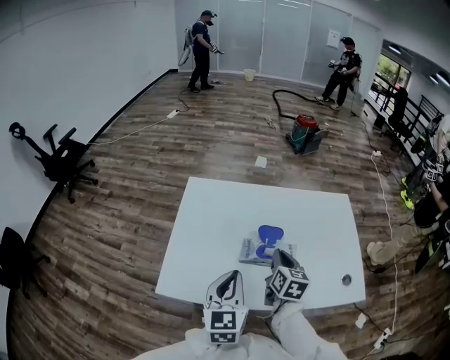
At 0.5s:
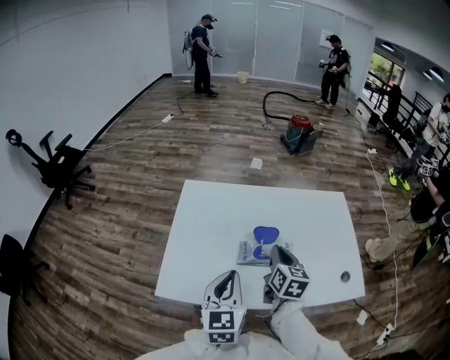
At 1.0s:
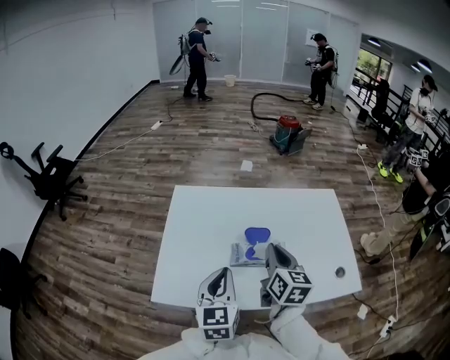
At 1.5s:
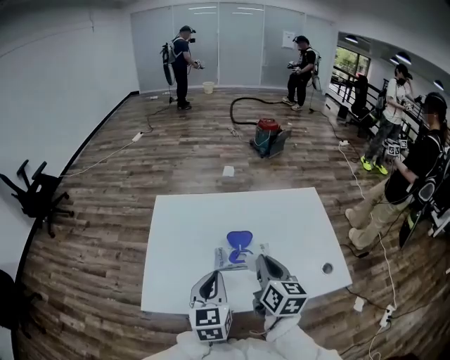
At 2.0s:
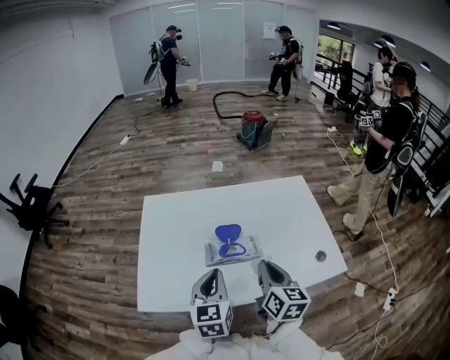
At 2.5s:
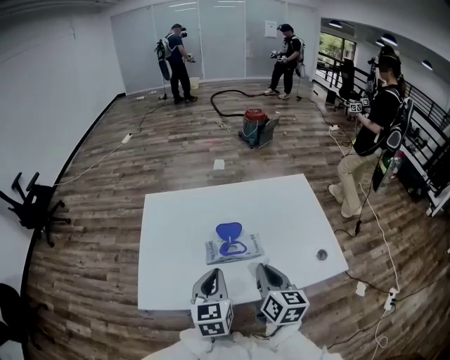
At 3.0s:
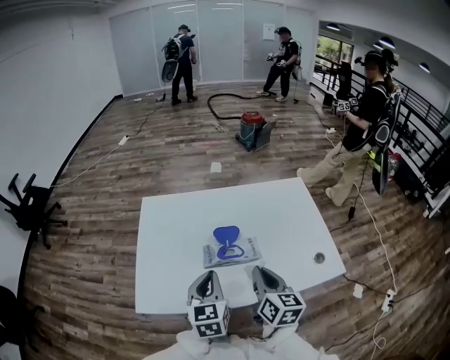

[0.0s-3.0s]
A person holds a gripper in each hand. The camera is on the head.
0.0s to 1.5s: The right gripper heads upward and backward, covering about 10 cm.
1.5s to 3.0s: The right gripper moves approximately 5 cm.

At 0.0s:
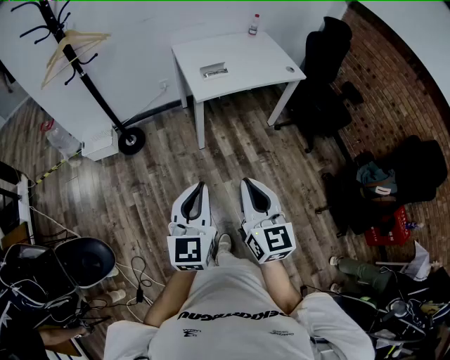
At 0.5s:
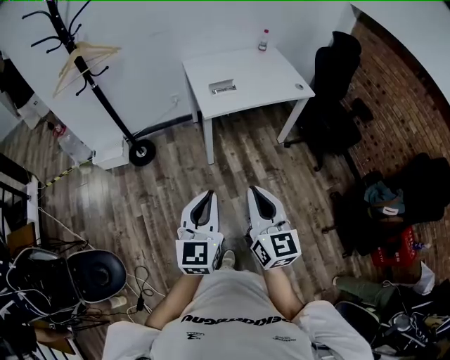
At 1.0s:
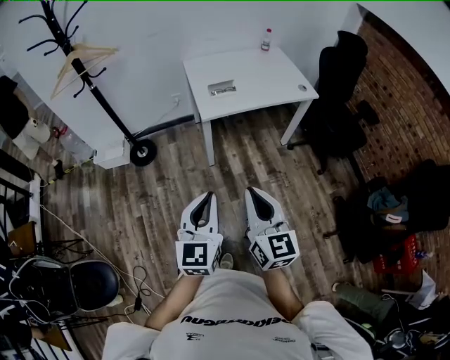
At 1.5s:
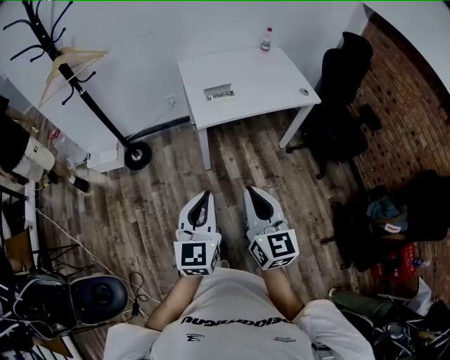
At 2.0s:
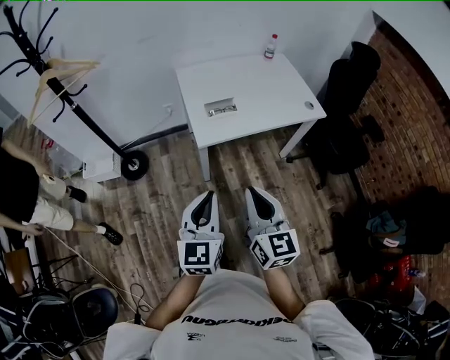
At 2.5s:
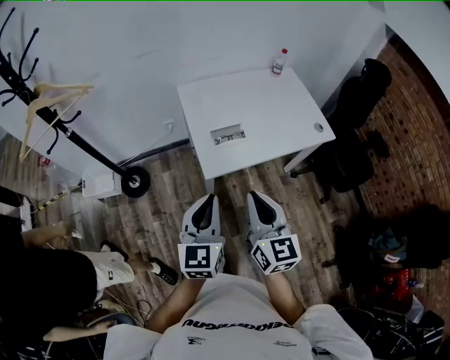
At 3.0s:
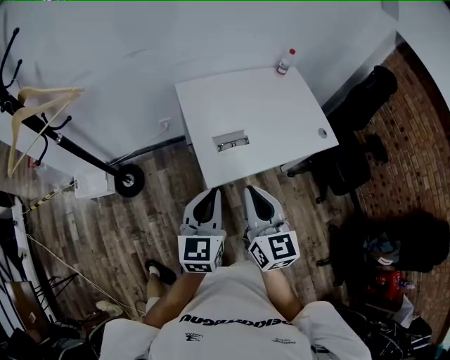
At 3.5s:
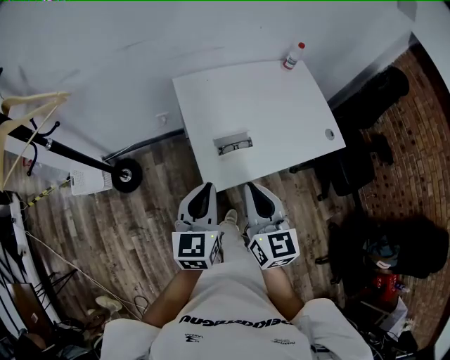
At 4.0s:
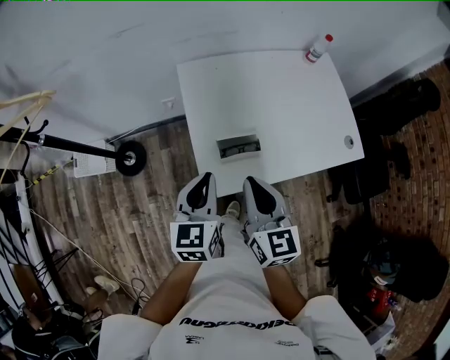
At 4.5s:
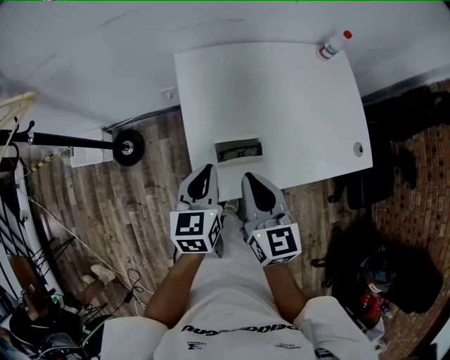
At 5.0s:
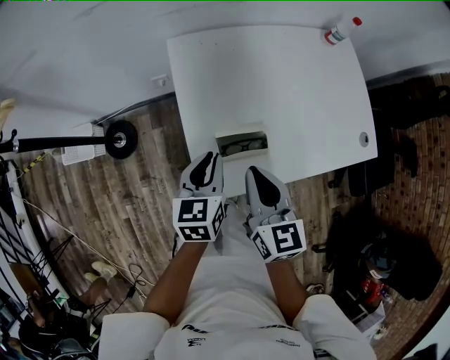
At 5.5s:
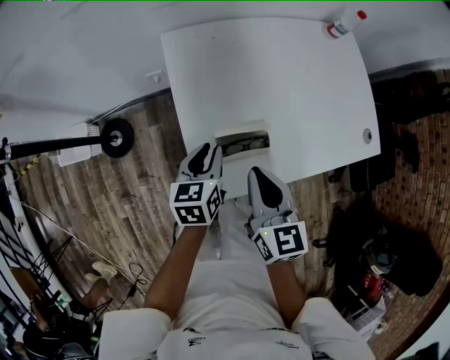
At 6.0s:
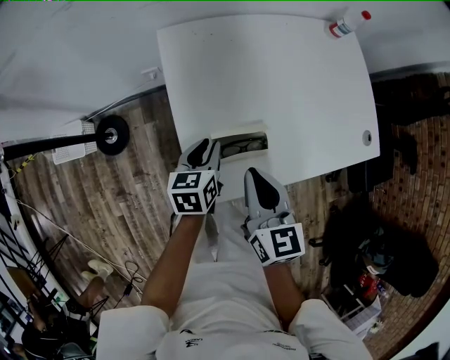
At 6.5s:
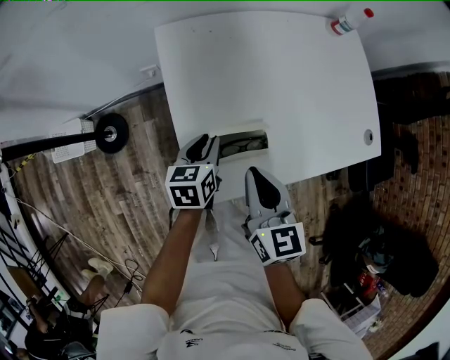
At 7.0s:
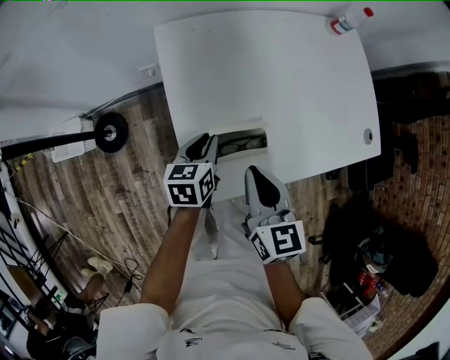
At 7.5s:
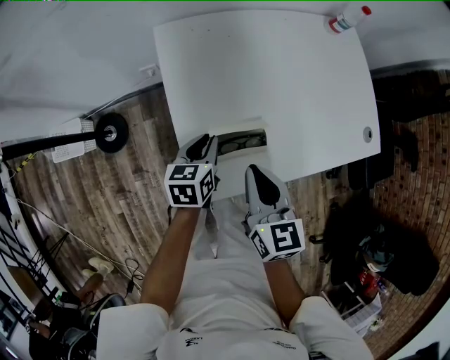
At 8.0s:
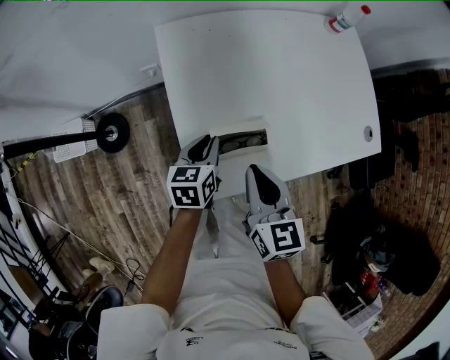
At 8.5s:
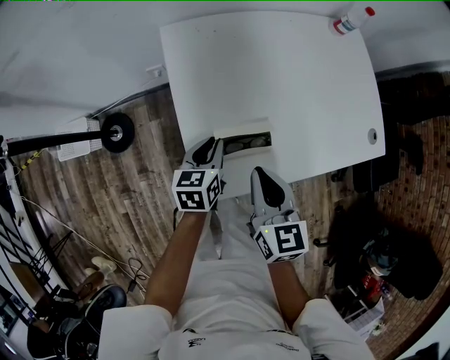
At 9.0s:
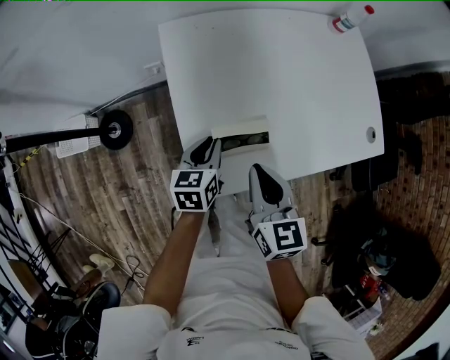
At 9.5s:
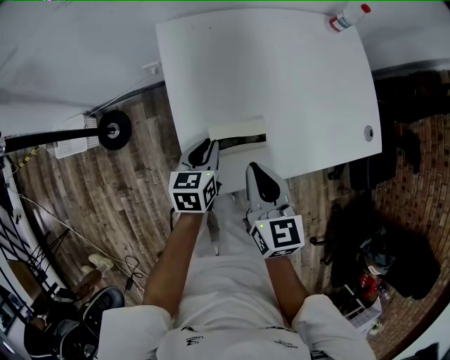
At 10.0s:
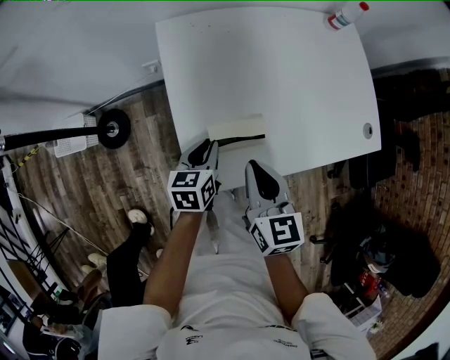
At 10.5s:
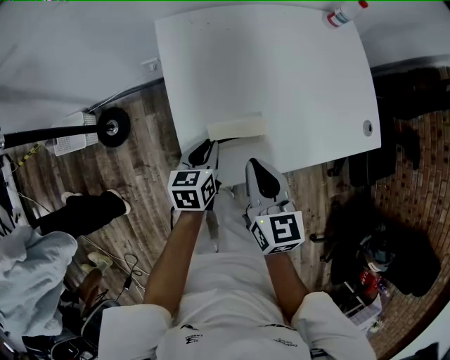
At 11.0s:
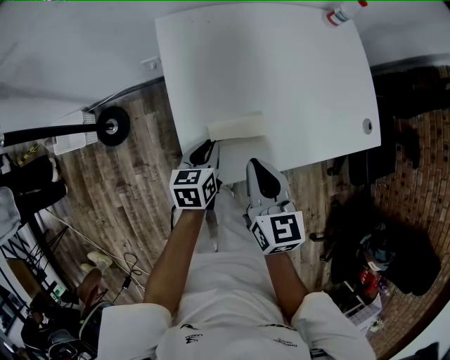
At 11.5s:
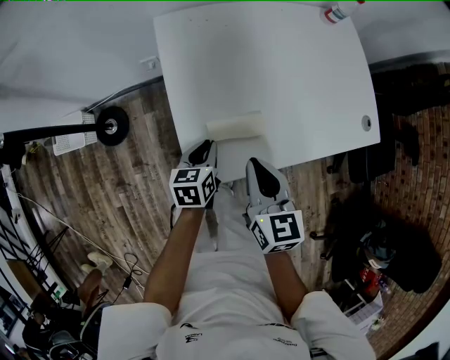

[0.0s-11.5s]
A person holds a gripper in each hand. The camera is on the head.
0.0s to 2.0s: Both grippers travel together forward, roughly 30 cm.
2.0s to 4.0s: The two grippers travel together, forward, approximately 50 cm.
4.0s to 6.0s: The left gripper travels downward and forward by some 25 cm, changes its angle by about 20 degrees, and opens up; the right gripper is displaced downward and forward by roughly 15 cm.
6.0s to 9.5s: There are only small adjustments of the grippers.
9.5s to 11.5s: The grippers make only small movements.

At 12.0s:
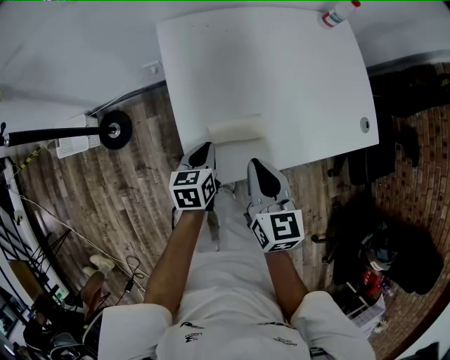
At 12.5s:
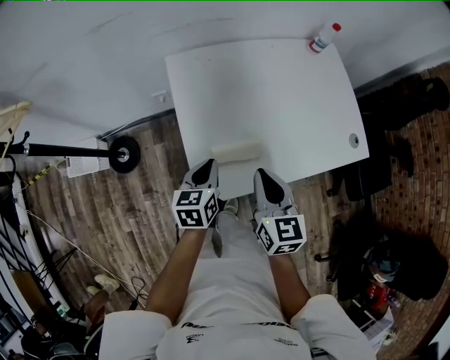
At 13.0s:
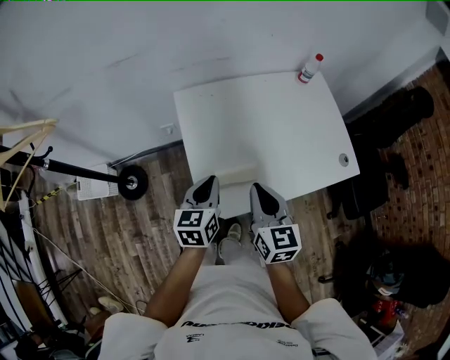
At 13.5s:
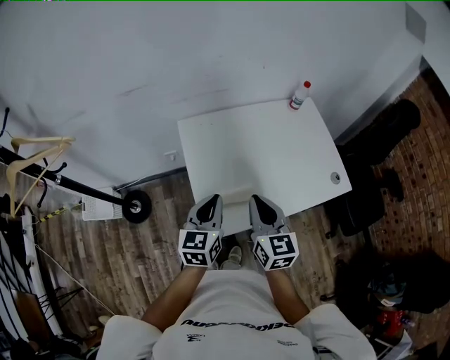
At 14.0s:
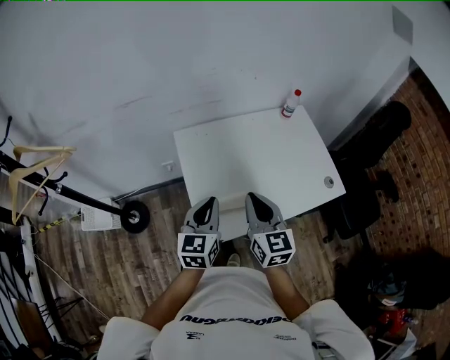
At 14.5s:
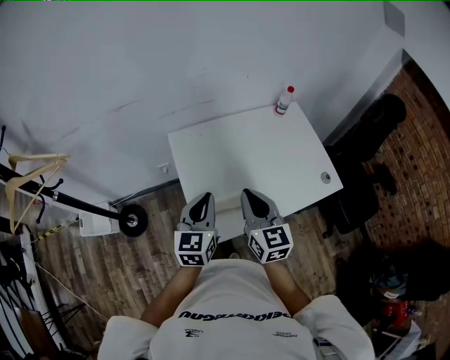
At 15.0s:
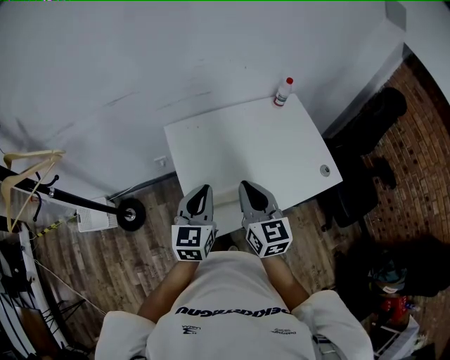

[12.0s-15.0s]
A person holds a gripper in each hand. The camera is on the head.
12.0s to 13.5s: The left gripper is displaced upward by roughly 30 cm, and rotates about 30 degrees. The right gripper shifts some 20 cm upward.
13.5s to 15.0s: The grippers move only a little.

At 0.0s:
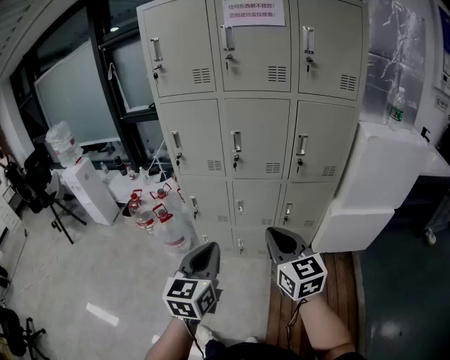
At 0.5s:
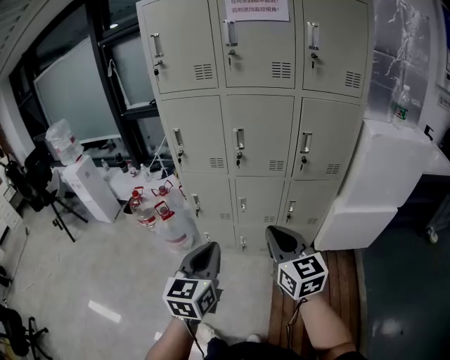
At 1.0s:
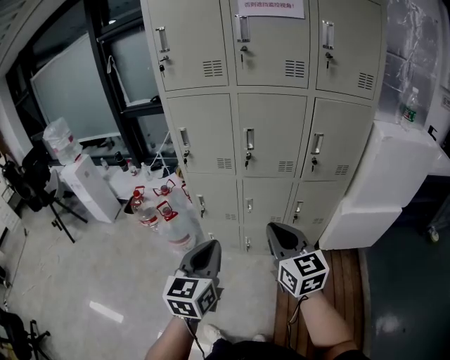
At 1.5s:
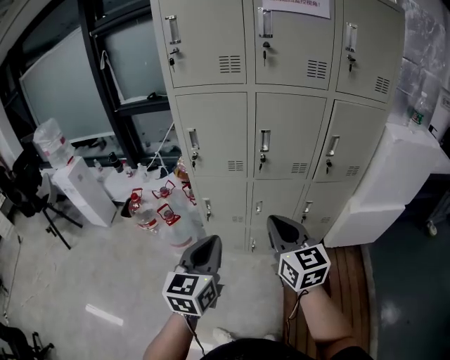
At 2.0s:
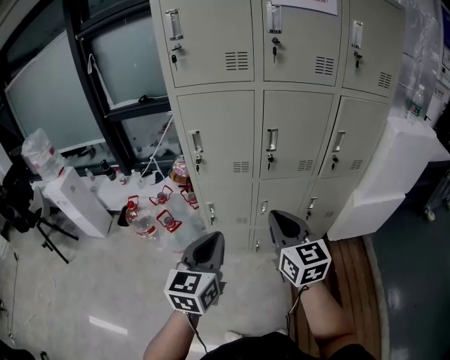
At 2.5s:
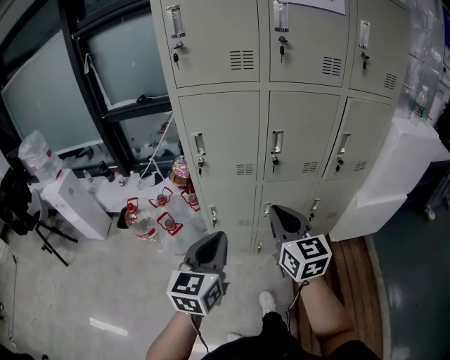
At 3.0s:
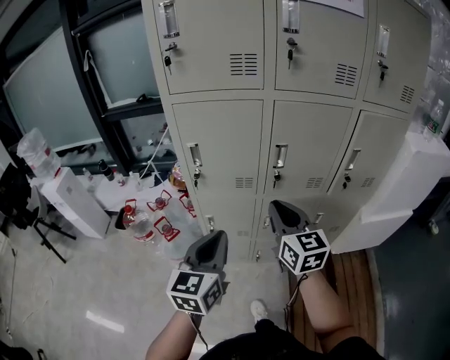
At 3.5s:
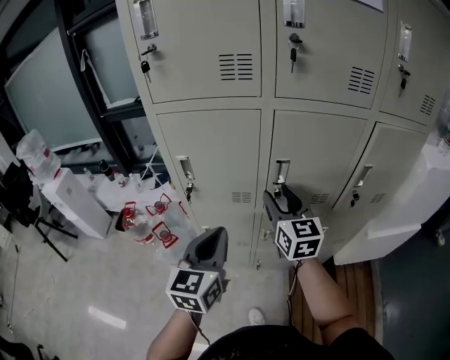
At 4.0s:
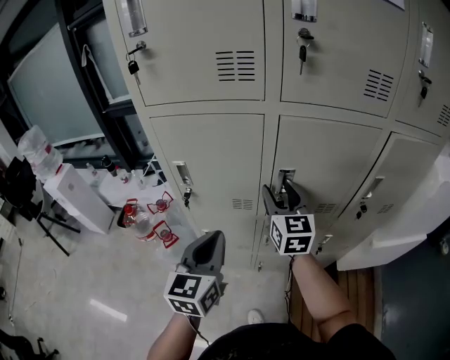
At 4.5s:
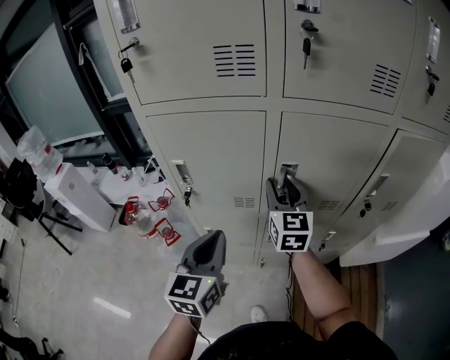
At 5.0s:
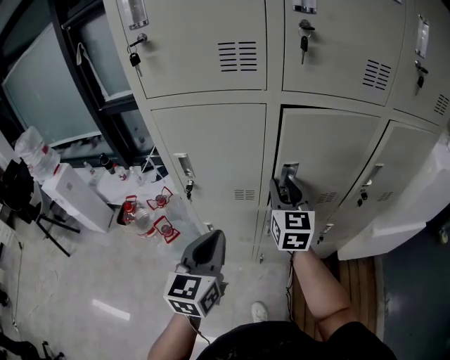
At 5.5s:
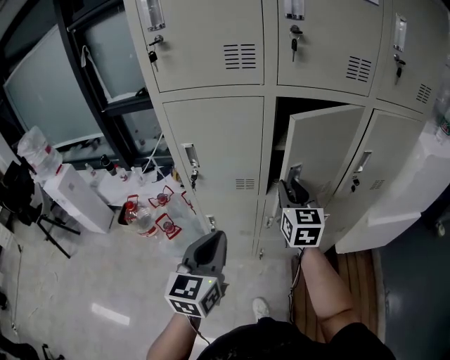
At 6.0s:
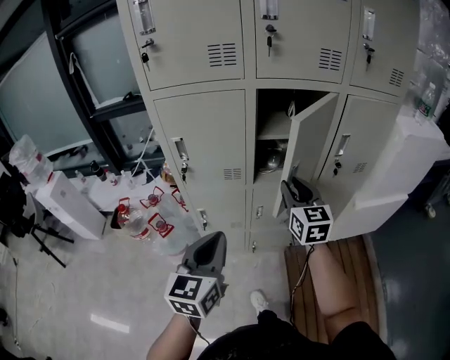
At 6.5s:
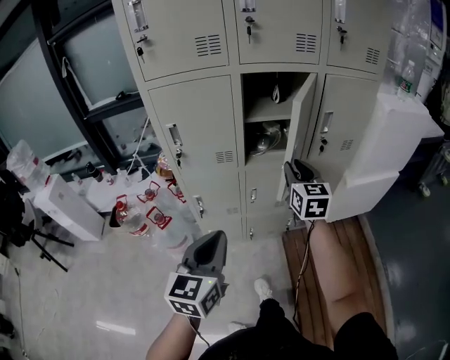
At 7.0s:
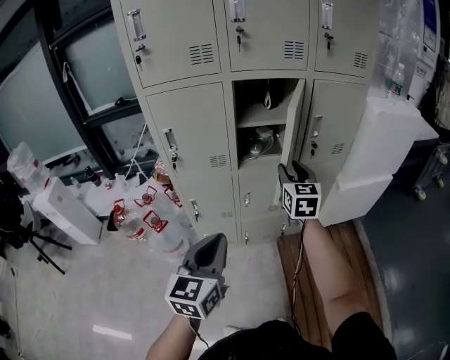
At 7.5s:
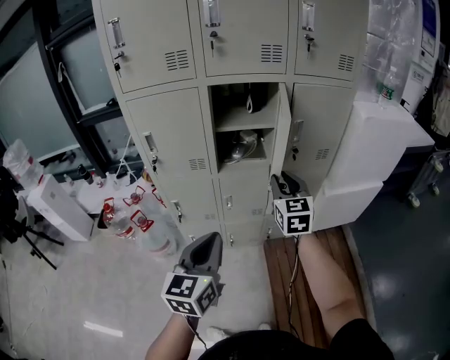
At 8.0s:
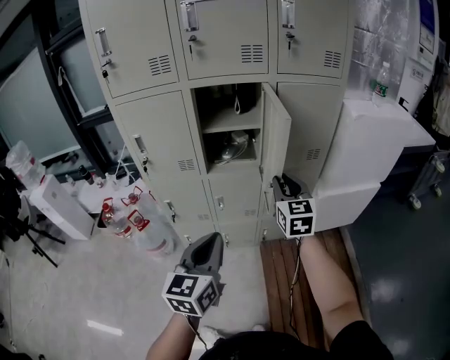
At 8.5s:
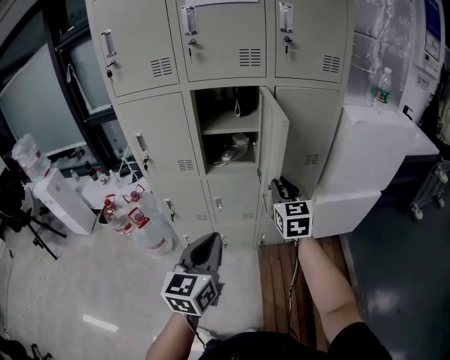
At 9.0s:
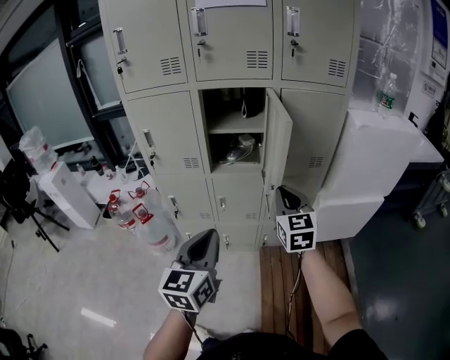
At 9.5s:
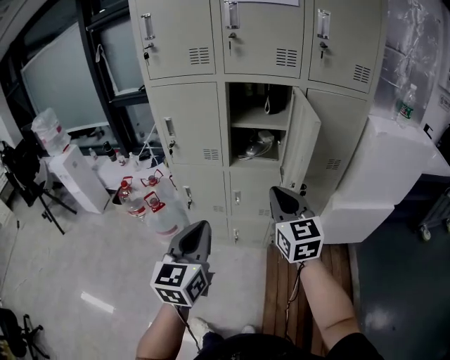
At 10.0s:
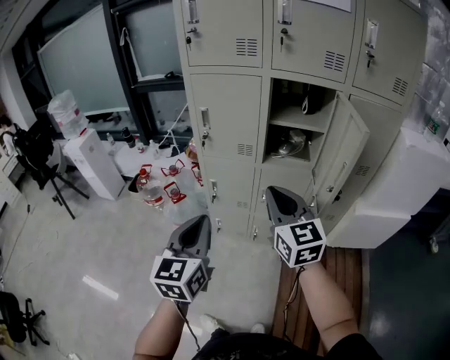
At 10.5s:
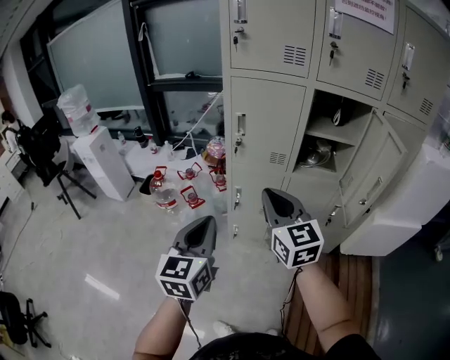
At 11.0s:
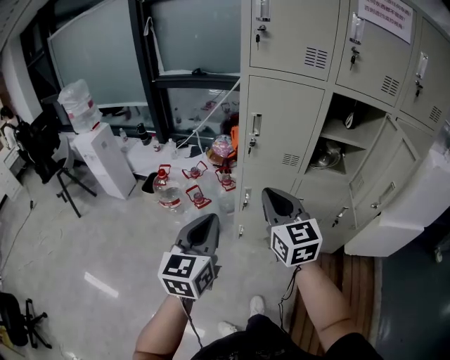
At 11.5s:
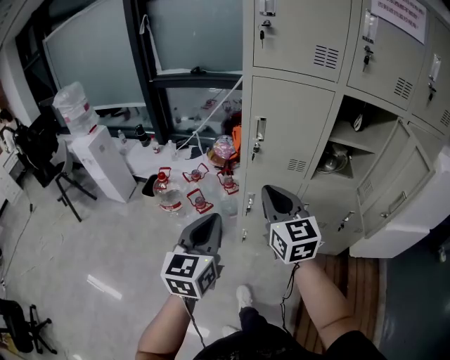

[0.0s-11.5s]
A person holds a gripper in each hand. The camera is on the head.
0.0s to 2.0s: Both grippers travel together to the left and forward, roughly 25 cm.
2.0s to 4.0s: Both grippers move forward, roughly 30 cm. The right gripper opens its fingers.
4.0s to 6.0s: The right gripper heads backward and to the right, covering approximately 15 cm, and closes. The left gripper goes roughly 15 cm backward.
6.0s to 7.5s: The two grippers go some 15 cm to the right and backward.
7.5s to 9.5s: The right gripper heads backward, covering roughly 10 cm, turns by approximately 20 degrees, and closes; the left gripper travels to the right and back again, roughly 10 cm each way.
9.5s to 11.5s: The two grippers go approximately 35 cm to the left and forward.
